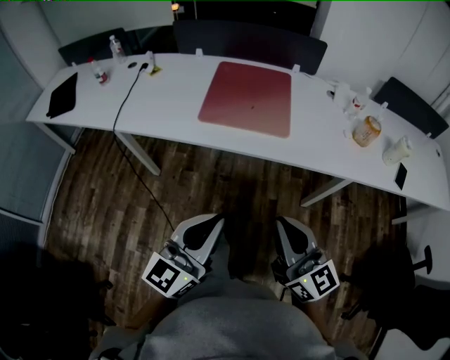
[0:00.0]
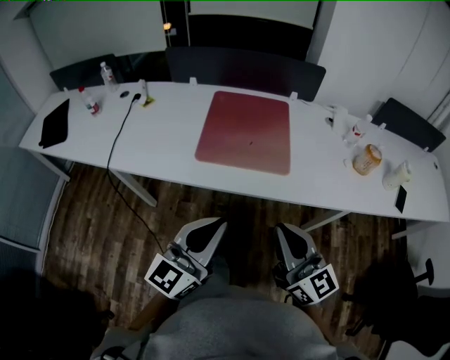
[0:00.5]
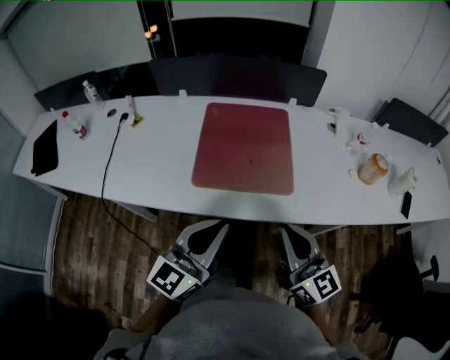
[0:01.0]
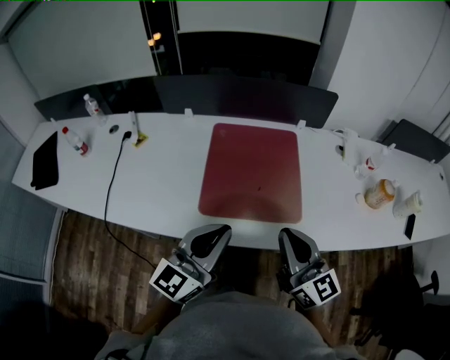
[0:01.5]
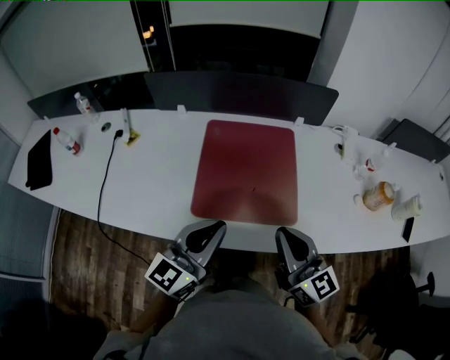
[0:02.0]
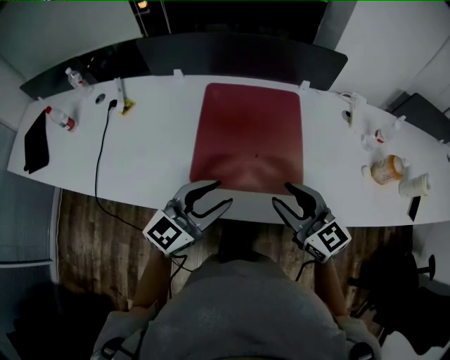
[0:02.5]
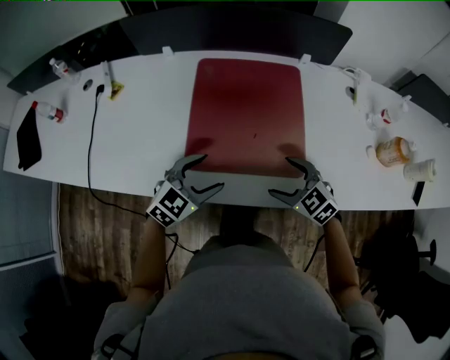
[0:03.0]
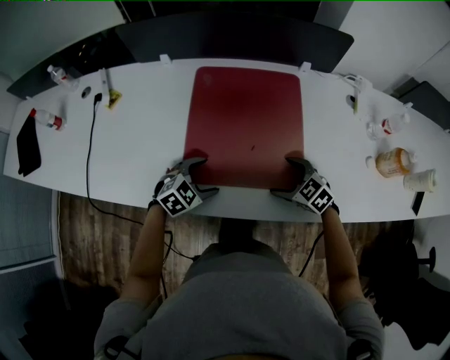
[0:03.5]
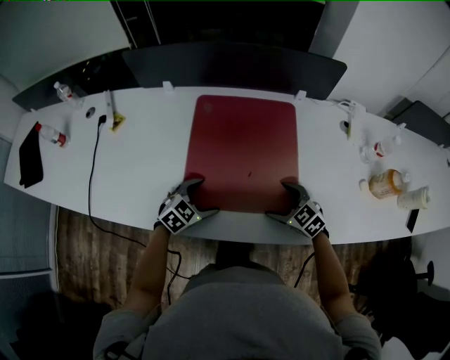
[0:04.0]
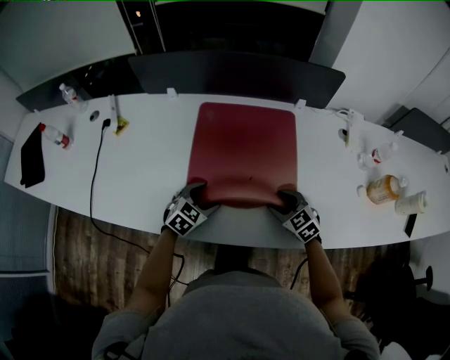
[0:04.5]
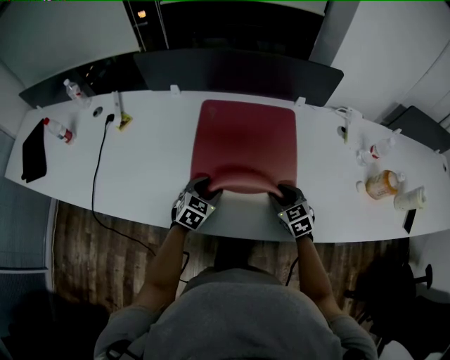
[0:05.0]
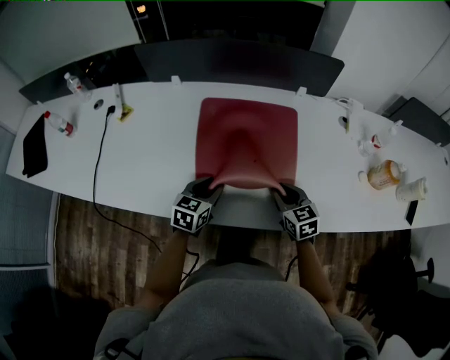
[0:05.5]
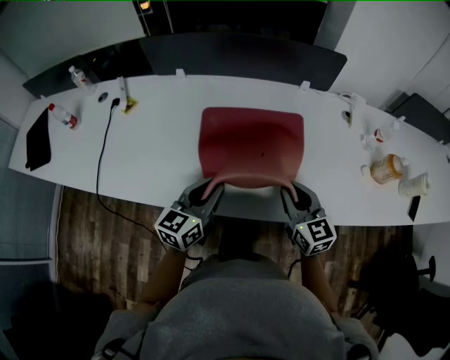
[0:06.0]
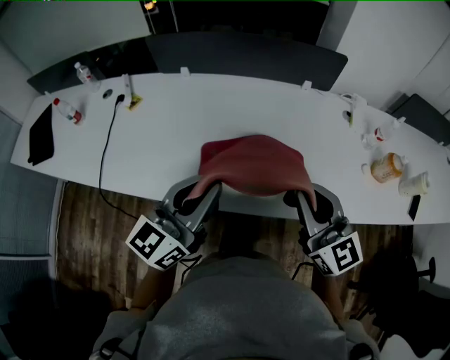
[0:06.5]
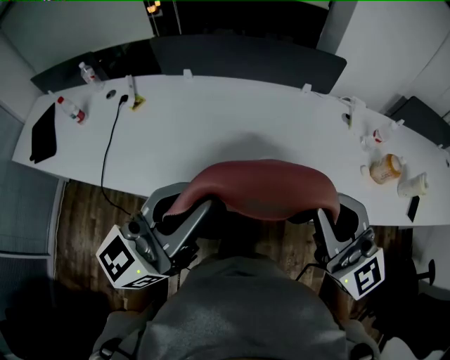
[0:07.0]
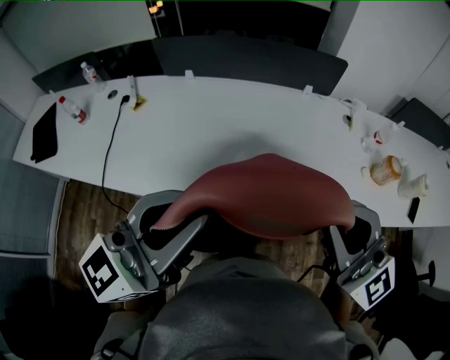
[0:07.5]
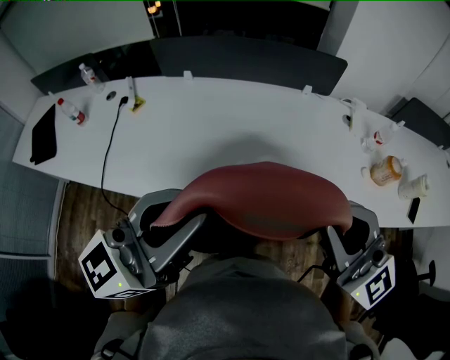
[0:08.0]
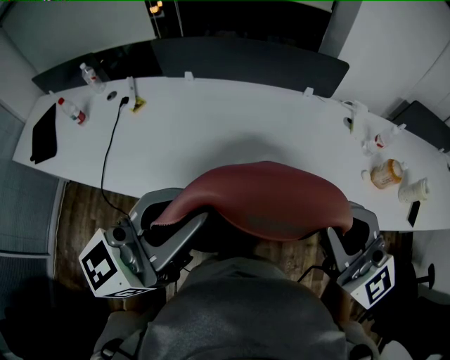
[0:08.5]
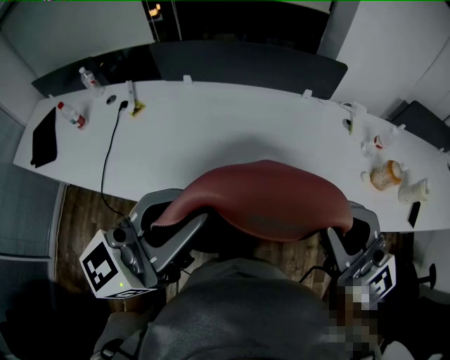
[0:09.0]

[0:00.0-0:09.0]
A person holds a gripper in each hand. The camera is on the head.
0:00.0 to 0:02.0: Both grippers move forward, some 30 cm.
0:02.0 to 0:04.5: Both grippers travel together downward and forward, about 30 cm. The right gripper tilts its fingers roughly 50 degrees downward, and opens its fingers. The left gripper points its fingers approximately 50 degrees further downward, and opens its fingers.
0:04.5 to 0:07.0: Both grippers travel together upward and backward, about 40 cm. The right gripper tilts its fingers about 60 degrees upward, and closes up, while the left gripper tips its fingers upward by roughly 60 degrees, and closes up.
0:07.0 to 0:09.0: There are only small adjustments of the grippers.

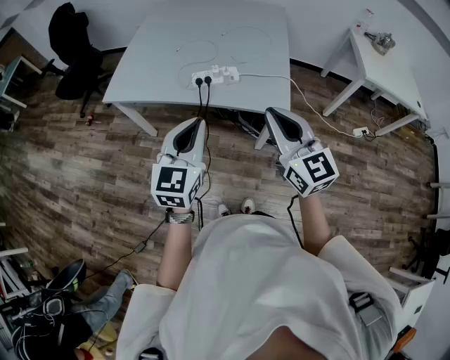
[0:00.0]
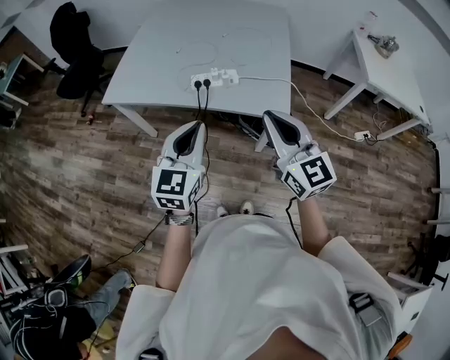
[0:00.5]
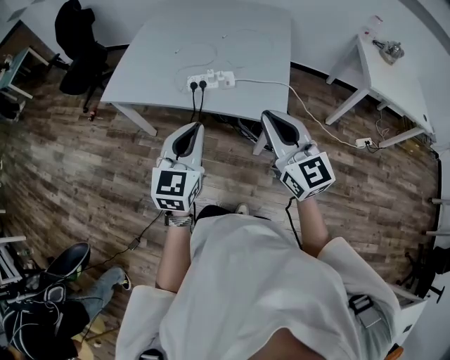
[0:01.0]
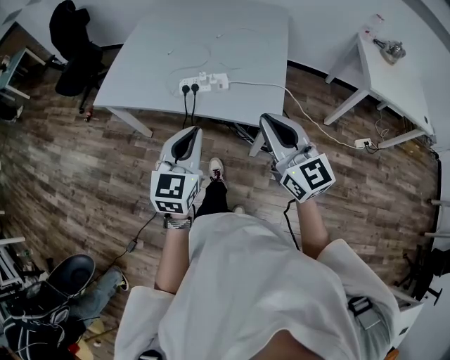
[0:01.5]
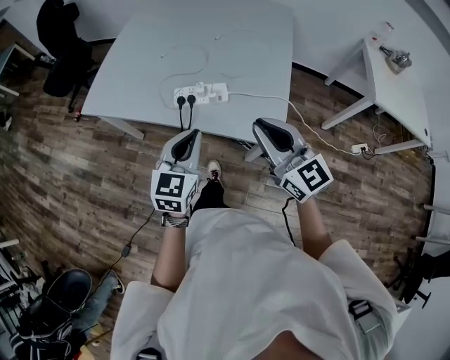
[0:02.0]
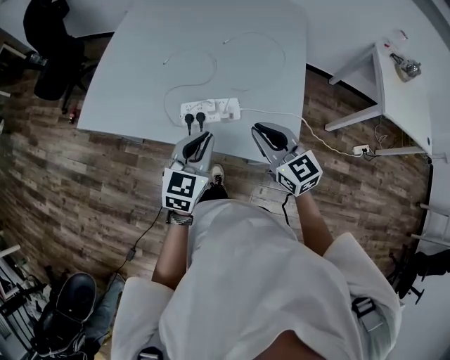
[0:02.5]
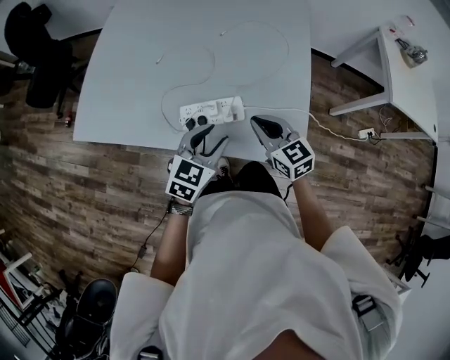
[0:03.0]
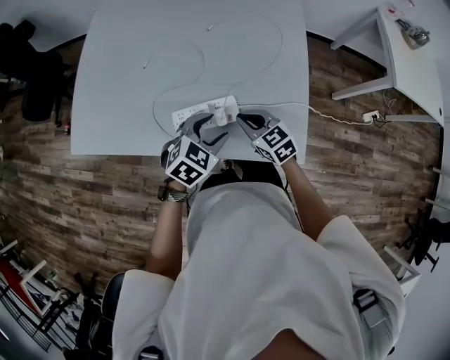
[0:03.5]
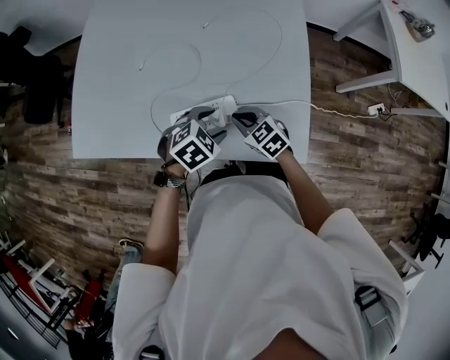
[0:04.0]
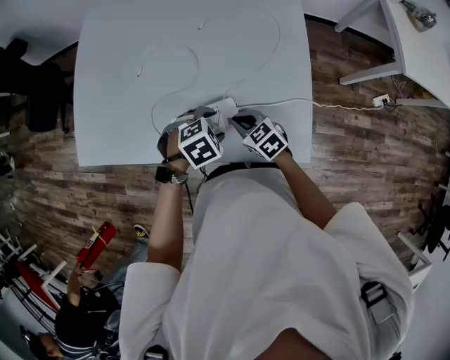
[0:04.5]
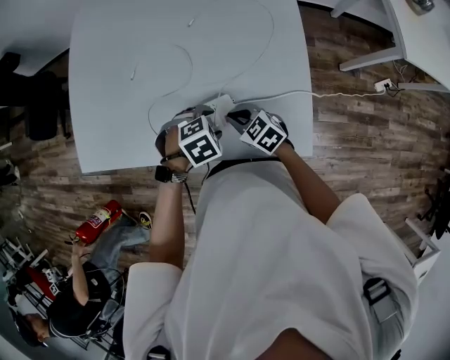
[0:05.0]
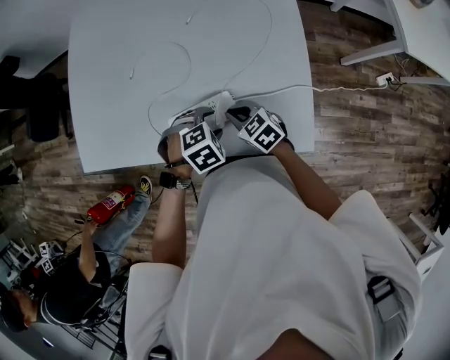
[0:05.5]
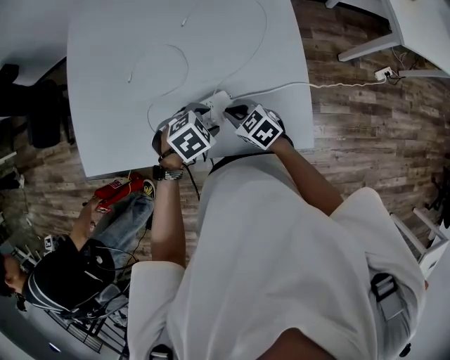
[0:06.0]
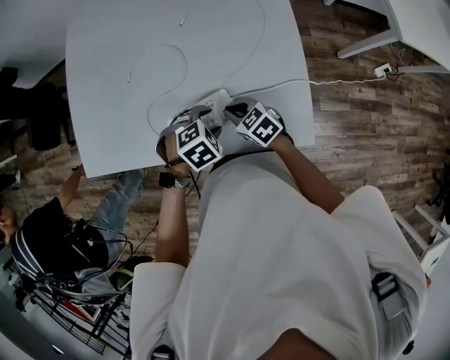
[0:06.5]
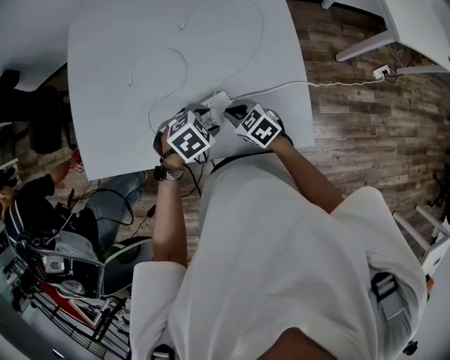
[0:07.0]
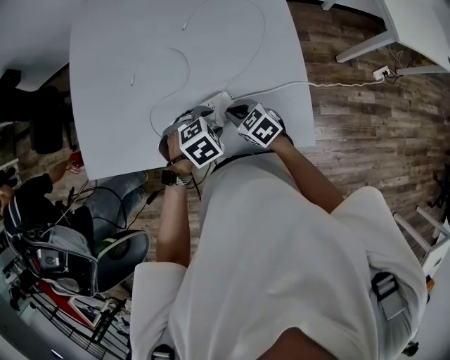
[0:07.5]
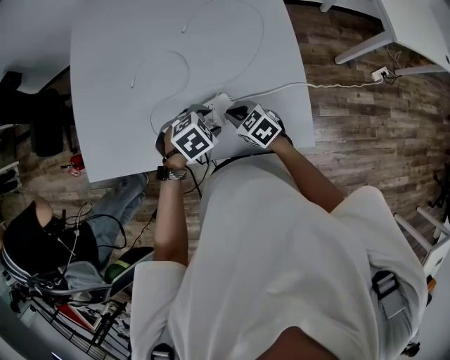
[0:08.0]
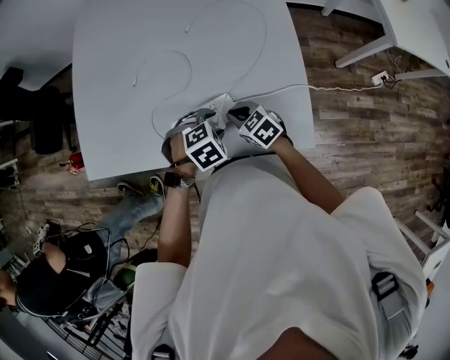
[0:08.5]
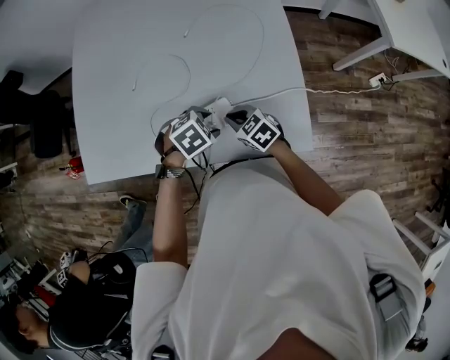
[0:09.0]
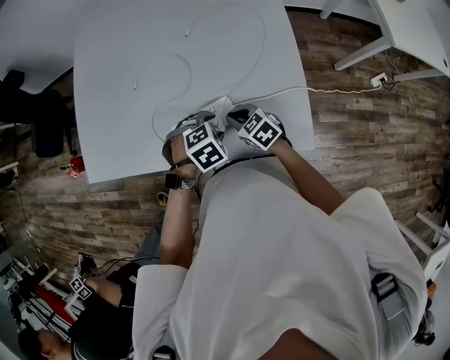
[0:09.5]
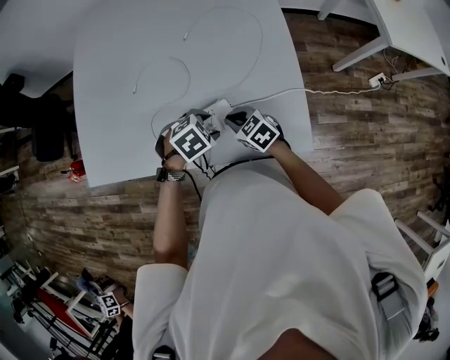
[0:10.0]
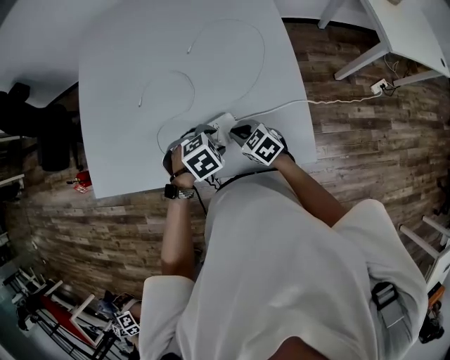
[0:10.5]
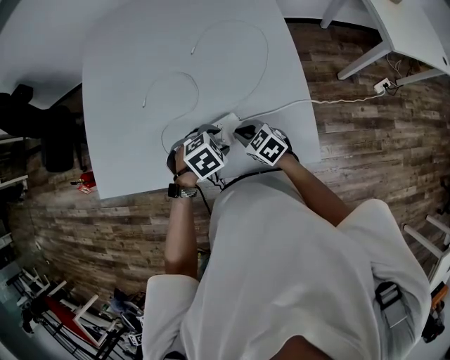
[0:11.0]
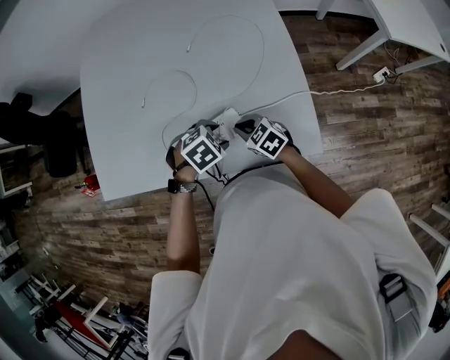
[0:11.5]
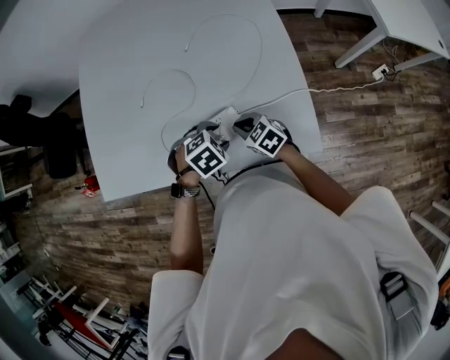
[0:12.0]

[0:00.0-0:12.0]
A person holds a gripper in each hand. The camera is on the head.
0:00.0 to 0:02.0: Both grippers move forward, downward and to the right, some 20 cm.
0:02.0 to 0:04.0: The right gripper is displaced downward and forward by approximately 40 cm, and tips its fingers downward by about 40 degrees; the left gripper travels forward and downward by approximately 25 cm, tilts its fingers roughly 40 degrees downward, and opens.
0:06.0 to 0:12.0: The grippers make only small movements.

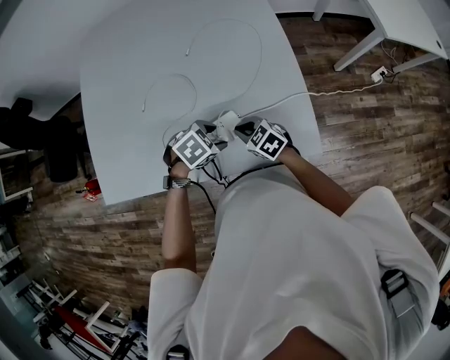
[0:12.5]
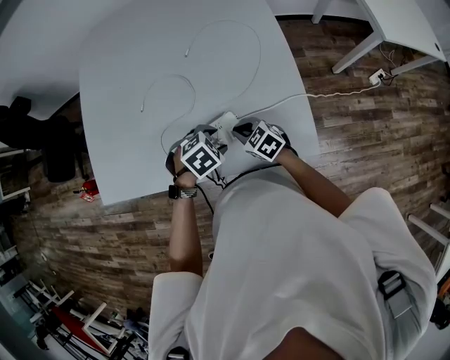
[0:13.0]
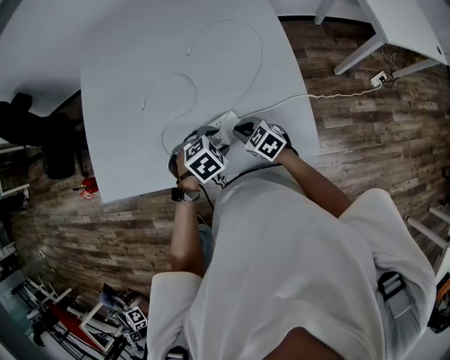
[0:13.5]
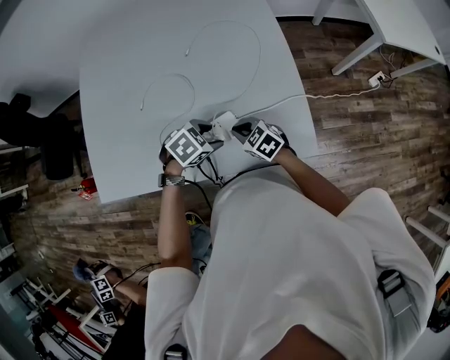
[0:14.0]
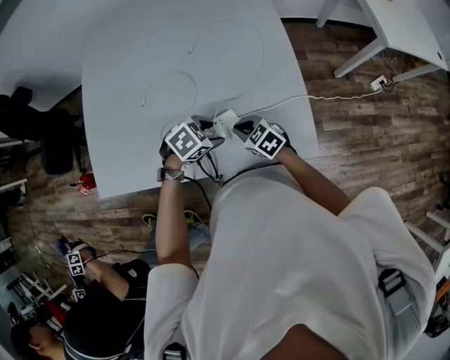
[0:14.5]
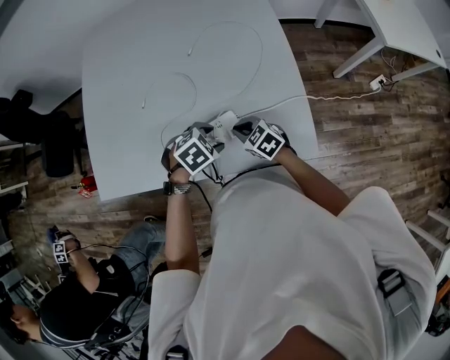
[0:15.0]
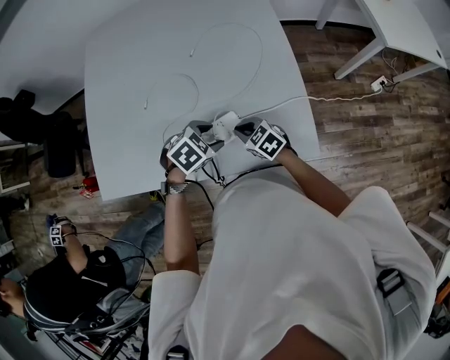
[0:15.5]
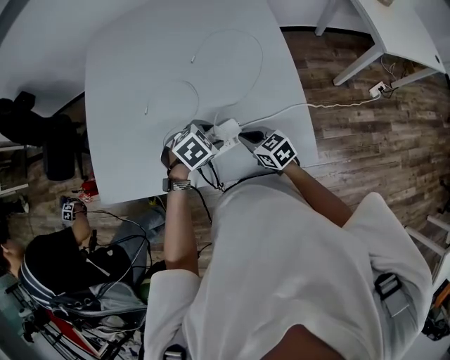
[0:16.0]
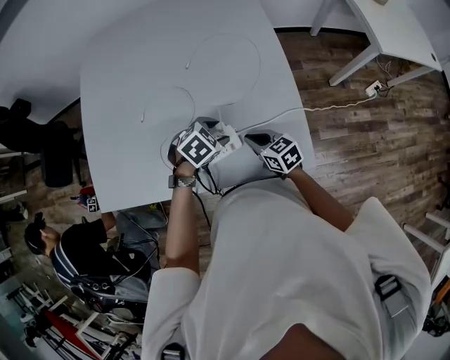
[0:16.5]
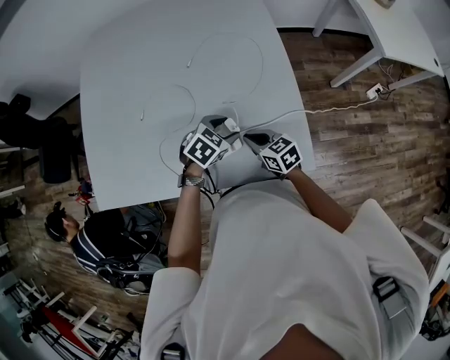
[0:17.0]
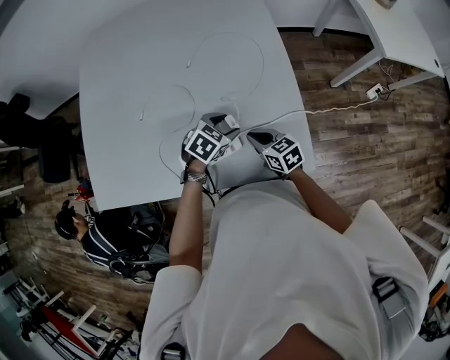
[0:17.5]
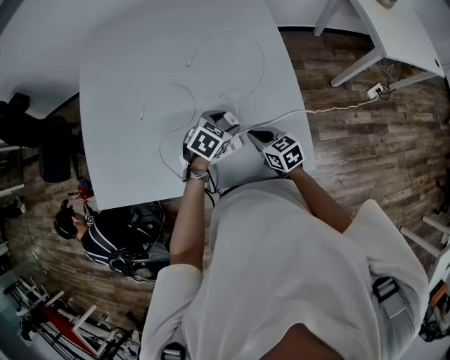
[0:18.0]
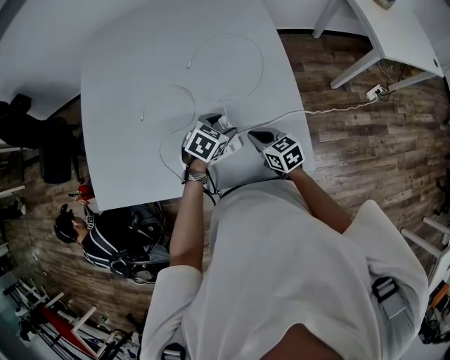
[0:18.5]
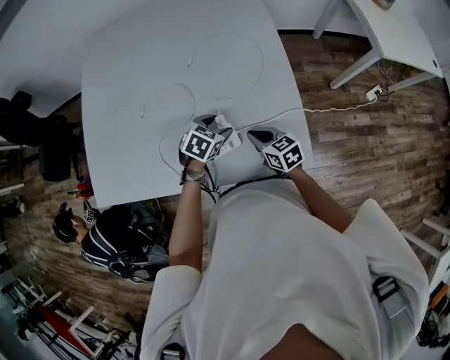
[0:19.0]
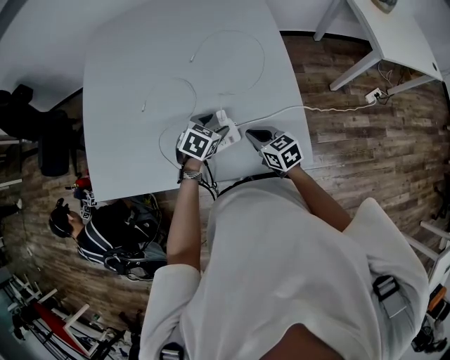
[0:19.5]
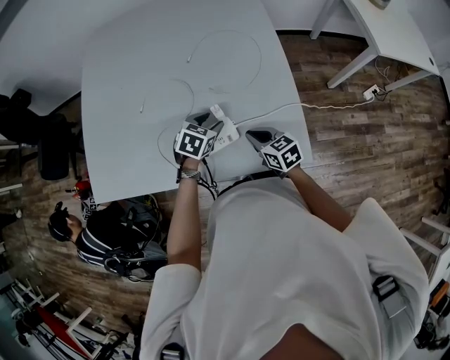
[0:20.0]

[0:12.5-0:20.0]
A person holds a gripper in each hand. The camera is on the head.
0:12.5 to 0:14.5: The grippers move only a little.
0:14.5 to 0:16.5: The right gripper ends up roughly 5 cm from where it was, and turns by about 20 degrees. The left gripper moves some 5 cm.
0:16.5 to 0:18.0: The grippers stay close to where they were, moving slightly.
0:18.0 to 0:20.0: The left gripper changes place by roughly 5 cm.
